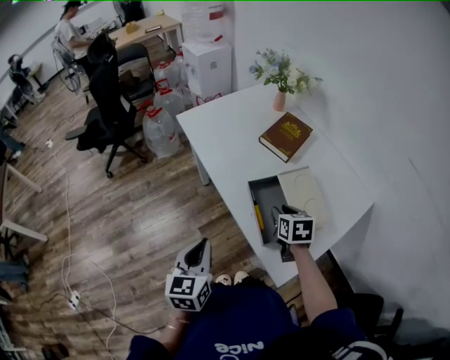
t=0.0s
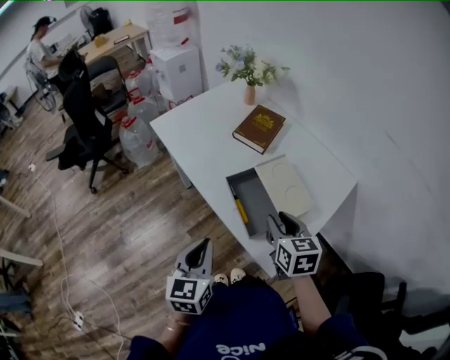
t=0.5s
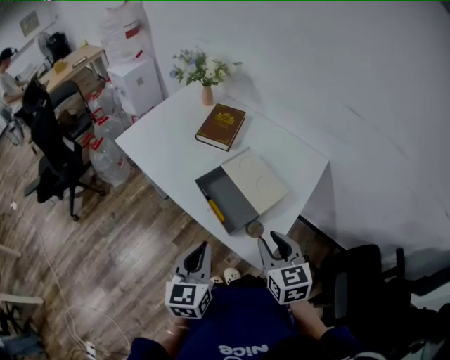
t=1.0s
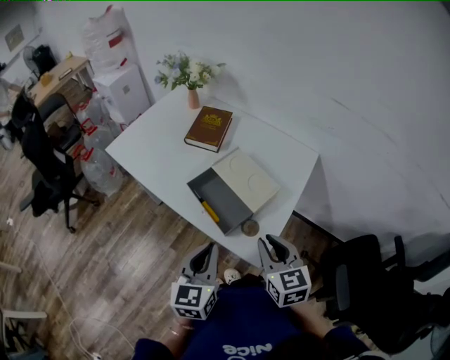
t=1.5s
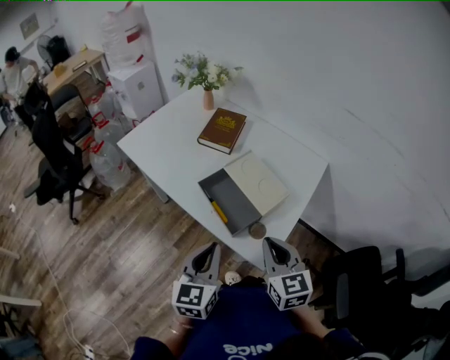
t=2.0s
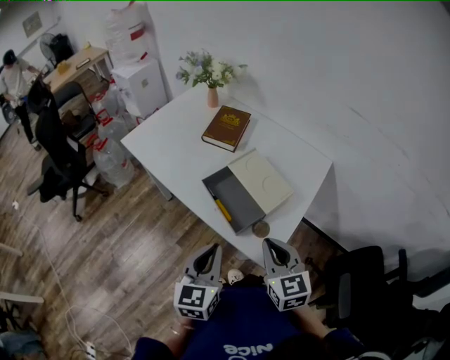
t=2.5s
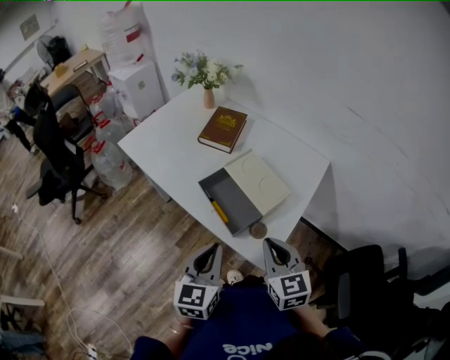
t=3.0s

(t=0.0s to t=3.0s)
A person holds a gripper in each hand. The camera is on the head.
t=0.0s - t=1.5s: The left gripper heads to the right, covering about 15 cm, and swivels some 30 degrees, while the right gripper moves backward, upward and to the right, some 20 cm, and rotates about 30 degrees.
t=1.5s - t=3.0s: The grippers make only small movements.

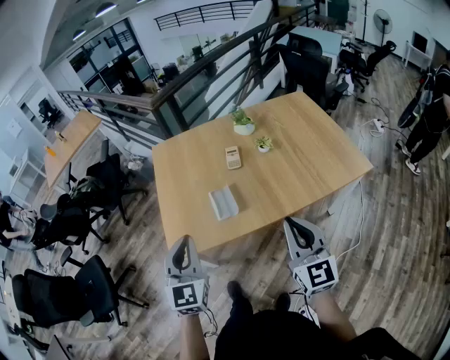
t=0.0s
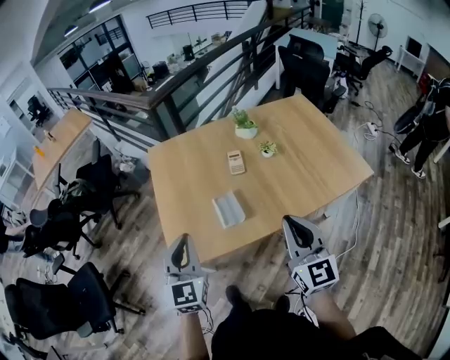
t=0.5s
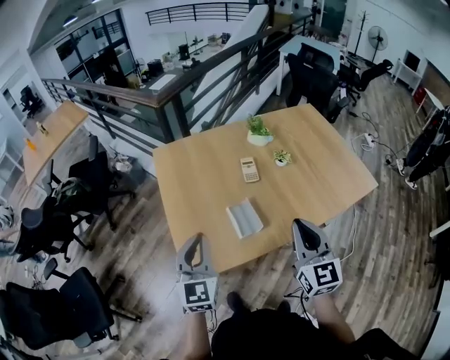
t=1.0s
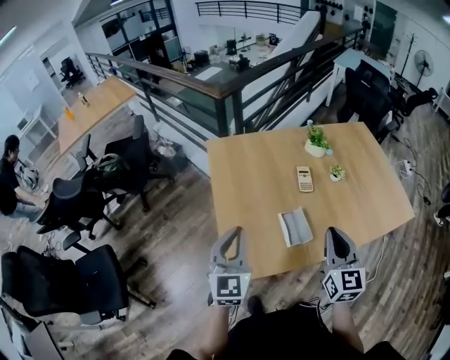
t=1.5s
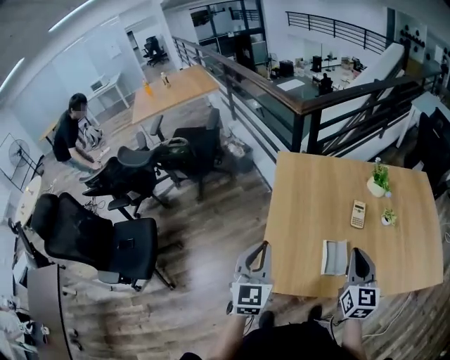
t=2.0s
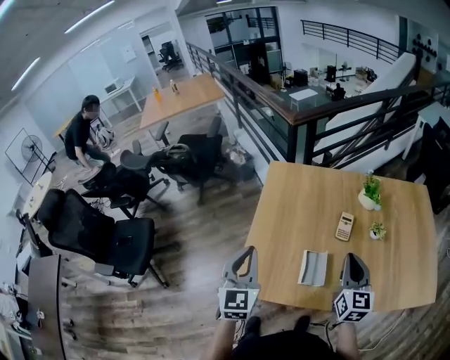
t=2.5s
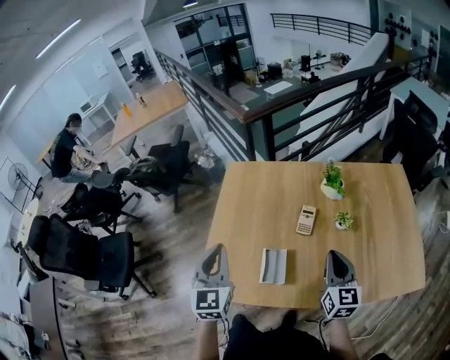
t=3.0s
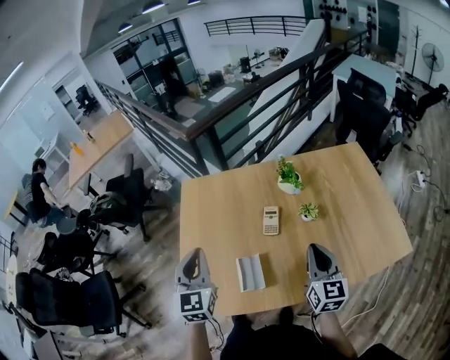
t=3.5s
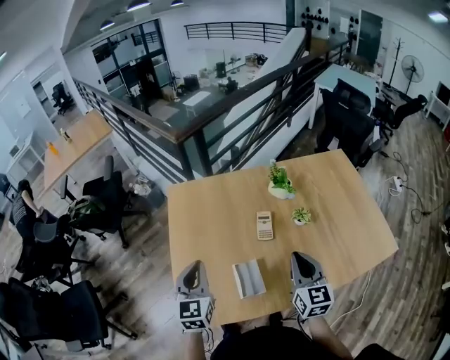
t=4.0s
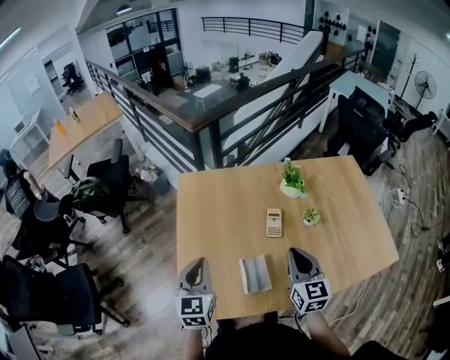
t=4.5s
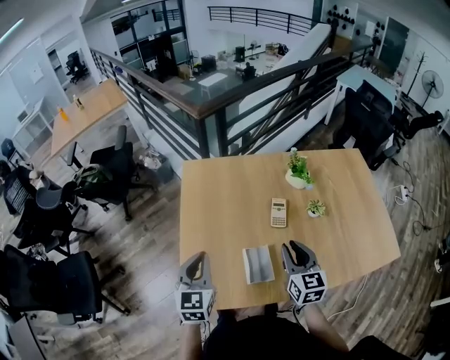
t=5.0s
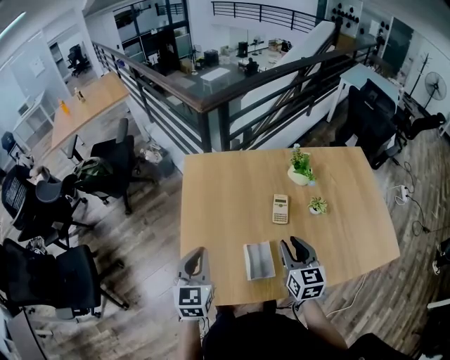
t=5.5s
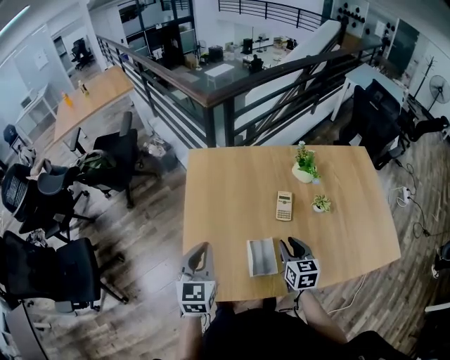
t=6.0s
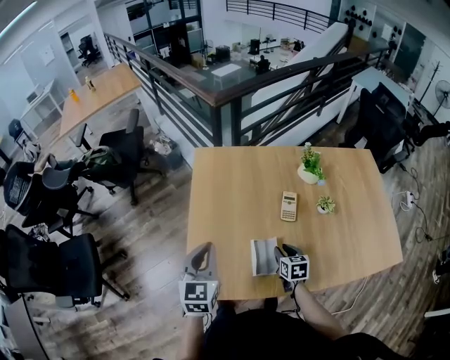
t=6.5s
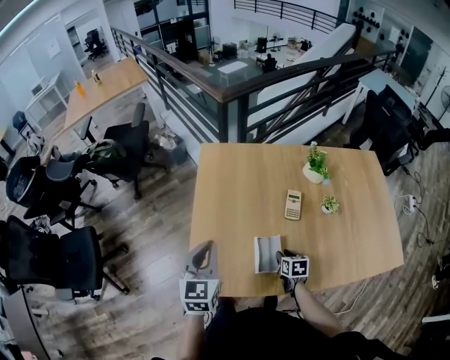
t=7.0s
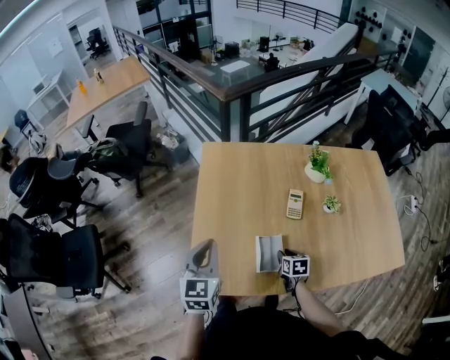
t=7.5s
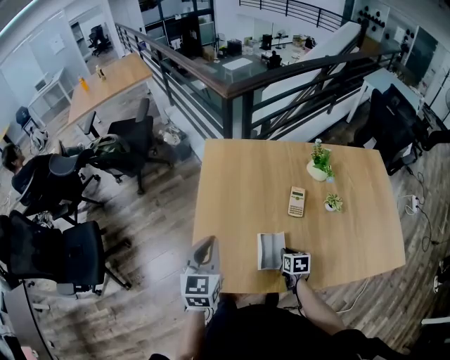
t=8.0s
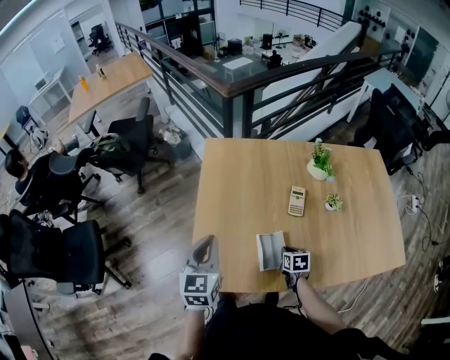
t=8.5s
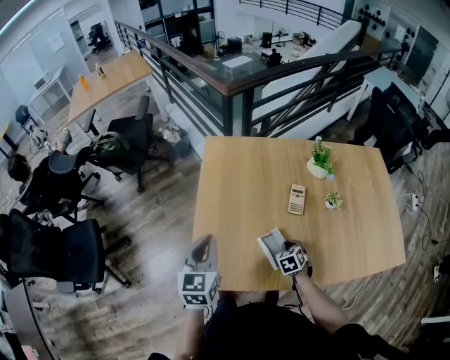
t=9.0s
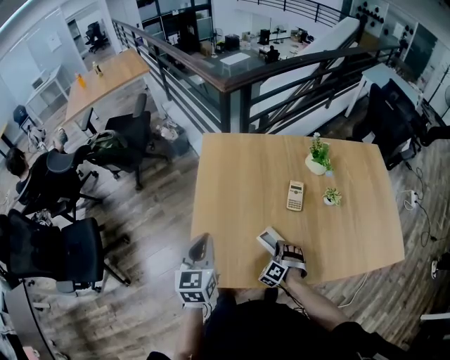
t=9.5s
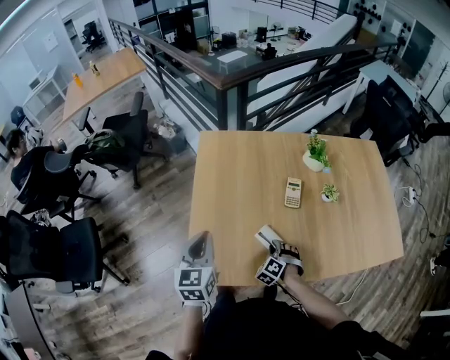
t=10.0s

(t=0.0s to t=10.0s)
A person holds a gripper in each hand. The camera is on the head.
t=0.0s - t=2.0s: The grippers both shift to the left and forward by roughly 30 cm.
t=2.0s - t=4.0s: The left gripper moves to the right and forward, some 20 cm. Meanwhile the right gripper goes roughly 20 cm to the right.
t=4.0s - t=6.0s: The right gripper heads downward and to the left, covering approximately 15 cm, and opens. The left gripper is displaced to the left by about 5 cm.
t=6.0s - t=8.0s: The right gripper travels downward by roughly 15 cm, changes its angle by some 30 degrees, and closes up.
t=8.0s - t=10.0s: The right gripper shifts roughly 5 cm to the left, and rotates around the line of its fingers by approximately 70 degrees, counterclockwise from behind.

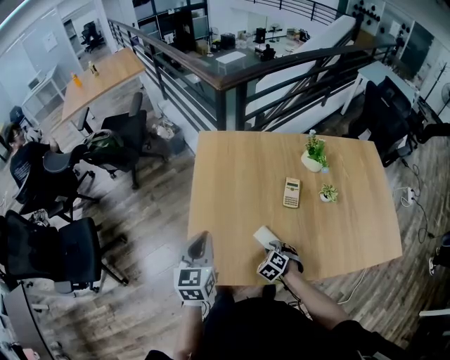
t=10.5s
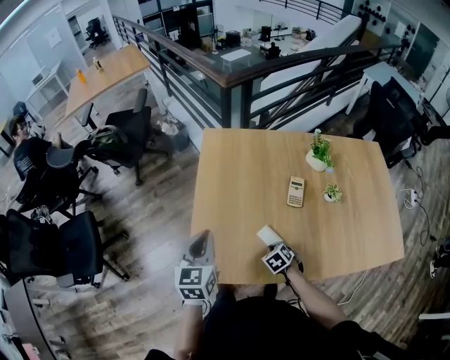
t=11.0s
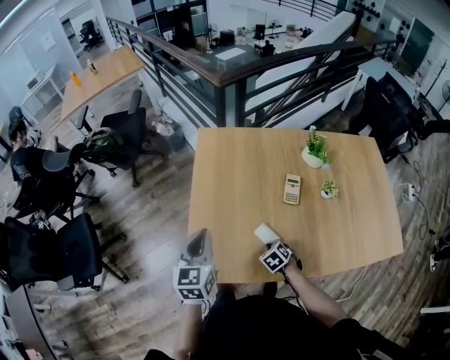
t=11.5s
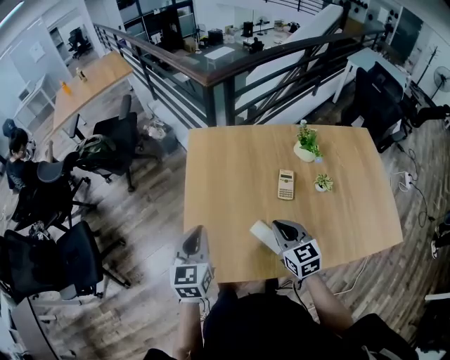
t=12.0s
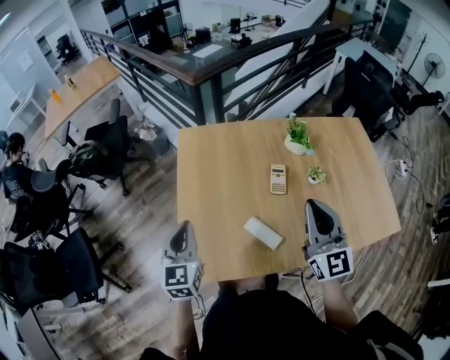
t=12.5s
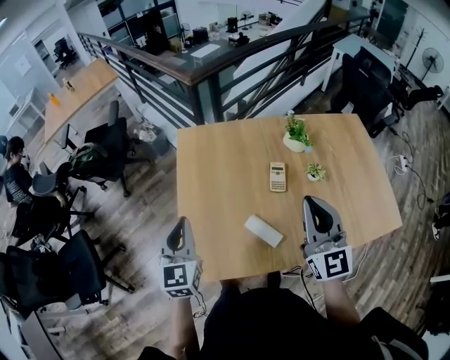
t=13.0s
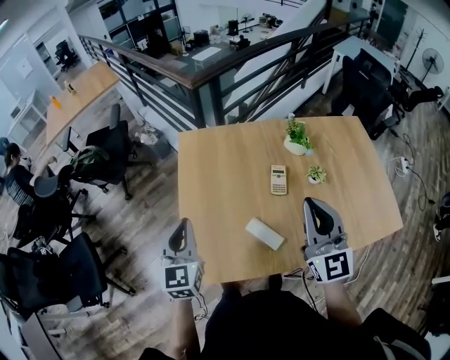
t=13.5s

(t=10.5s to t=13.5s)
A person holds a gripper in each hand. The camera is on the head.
t=10.5s - t=12.0s: The right gripper heads upward, covering roughly 20 cm, tilts its fingers roughly 40 degrees upward, and closes its fingers.
t=12.0s - t=13.5s: The left gripper travels upward by roughly 5 cm. The right gripper travels upward by roughly 20 cm, and points its fingers approximately 30 degrees further upward.

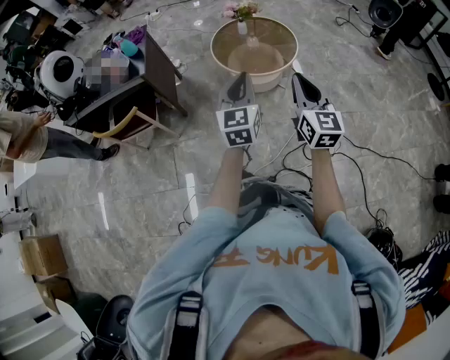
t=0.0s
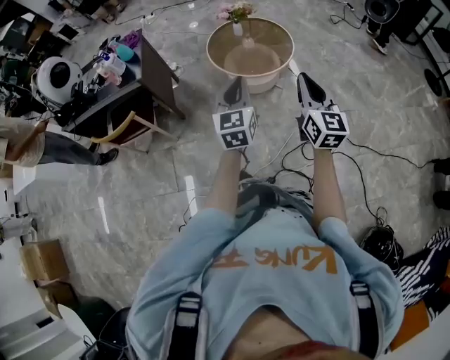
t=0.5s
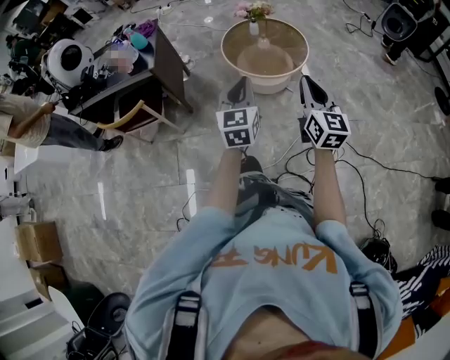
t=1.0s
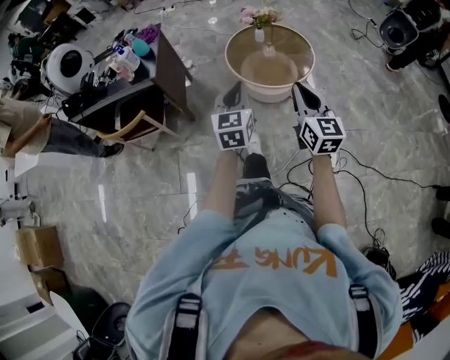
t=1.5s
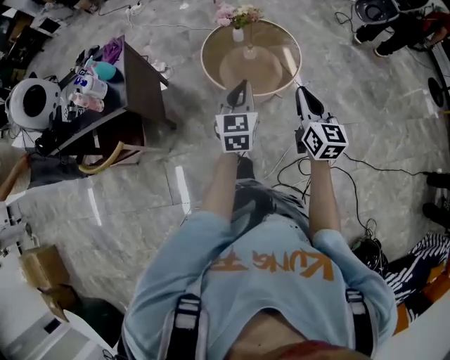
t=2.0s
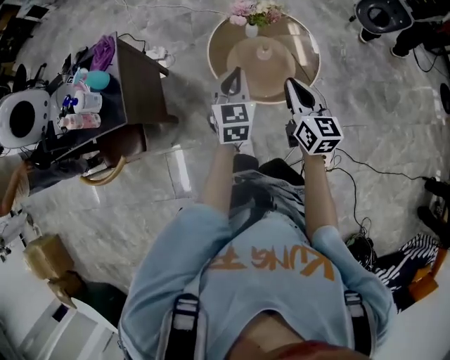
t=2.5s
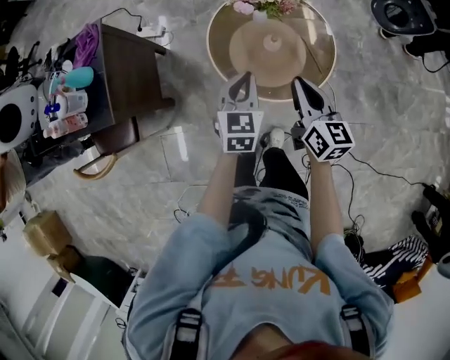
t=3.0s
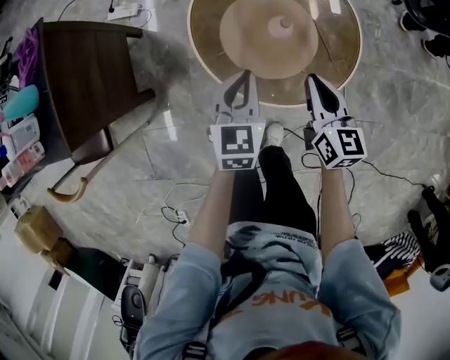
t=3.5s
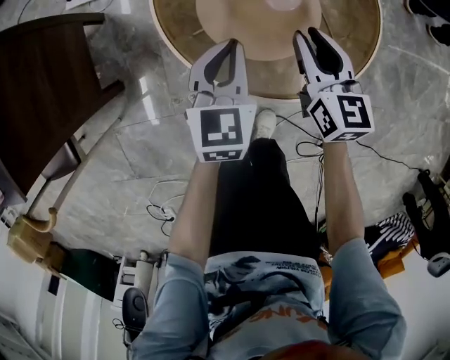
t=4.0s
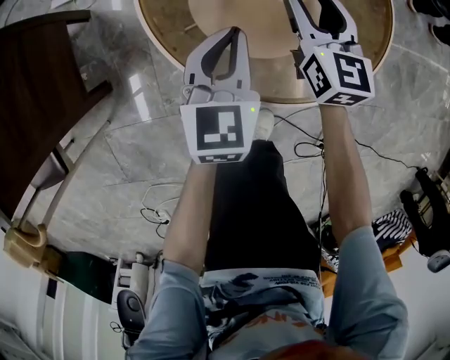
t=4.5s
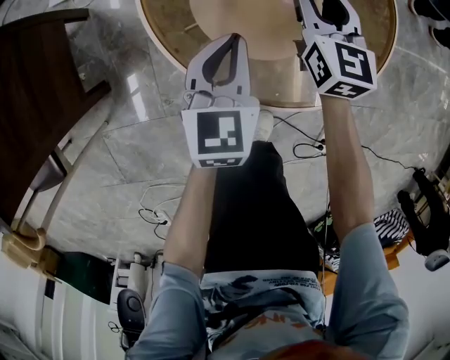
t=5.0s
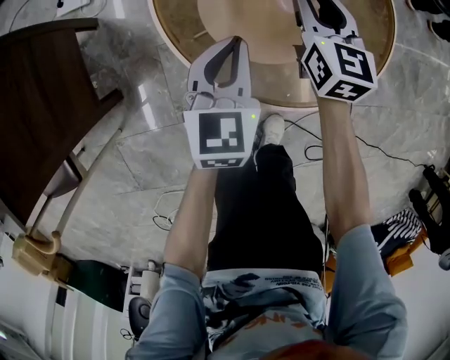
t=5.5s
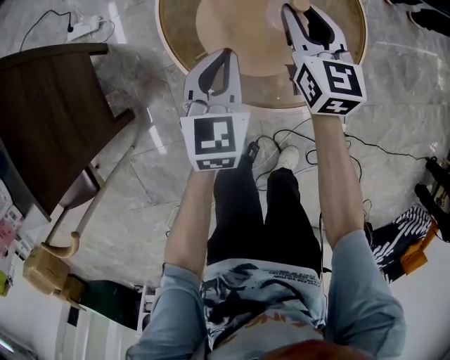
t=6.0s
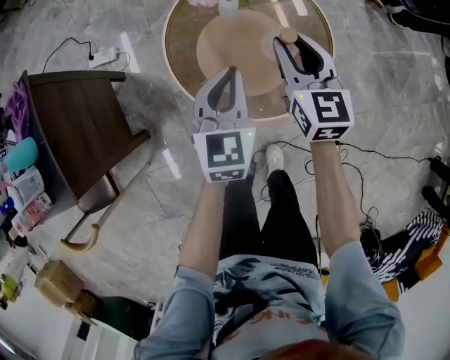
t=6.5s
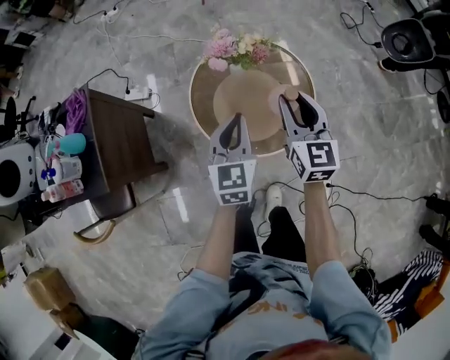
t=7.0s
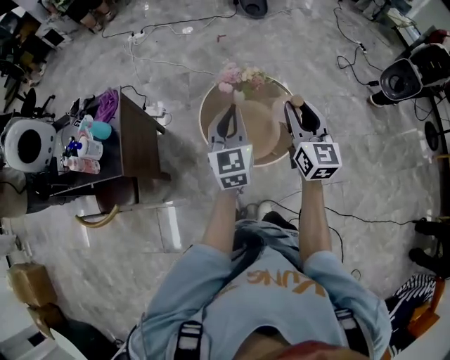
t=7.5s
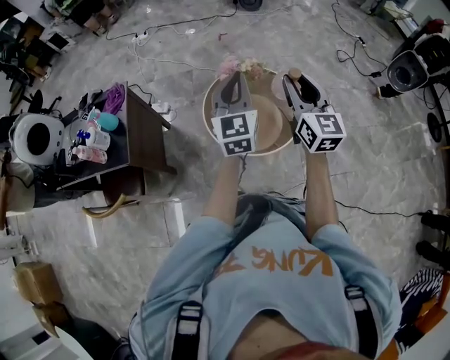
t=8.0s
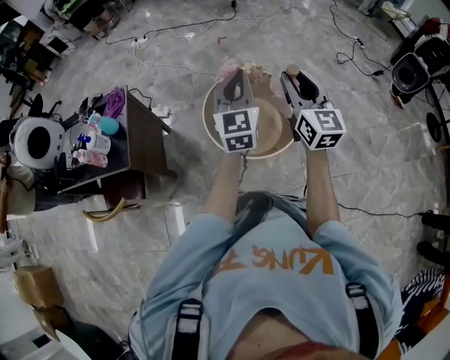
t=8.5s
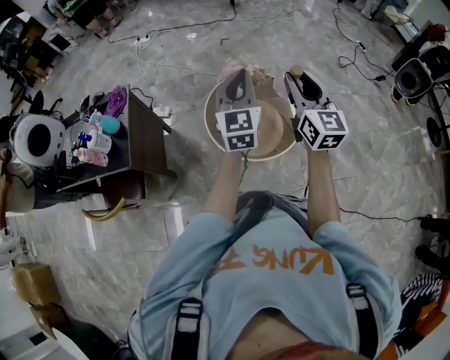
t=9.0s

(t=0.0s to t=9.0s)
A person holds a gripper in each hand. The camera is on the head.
t=0.0s - t=2.0s: The two grippers go about 25 cm forward.
t=2.0s - t=4.5s: The two grippers go approximately 60 cm downward and forward. The right gripper opens up.
t=4.5s - t=7.0s: The grippers both shift upward by about 40 cm.
t=7.0s - t=9.0s: The grippers both shift upward by roughly 25 cm. The left gripper changes its angle by some 20 degrees.

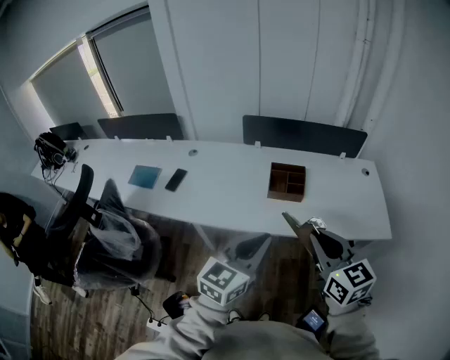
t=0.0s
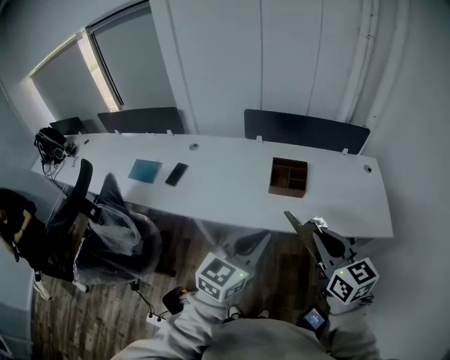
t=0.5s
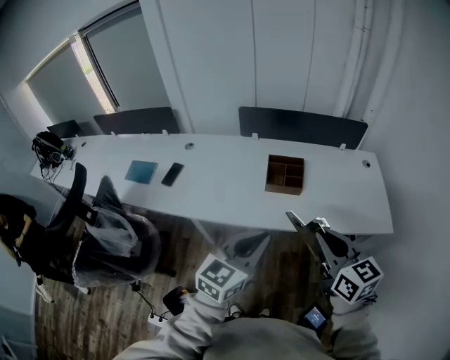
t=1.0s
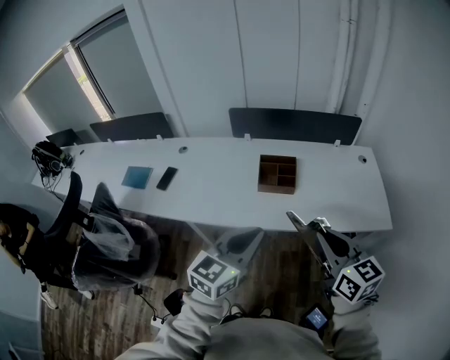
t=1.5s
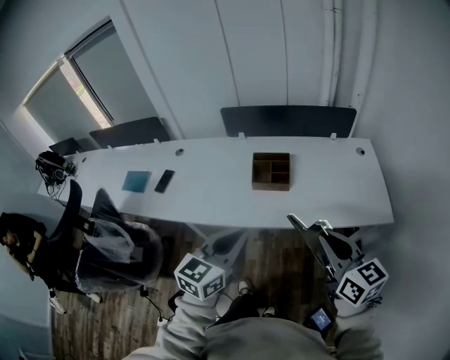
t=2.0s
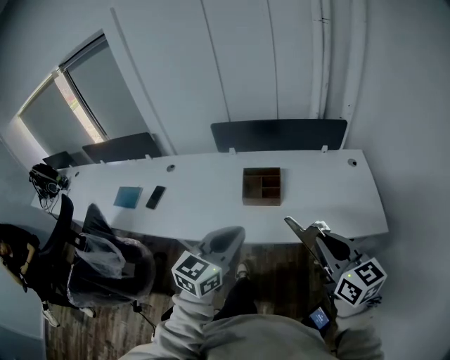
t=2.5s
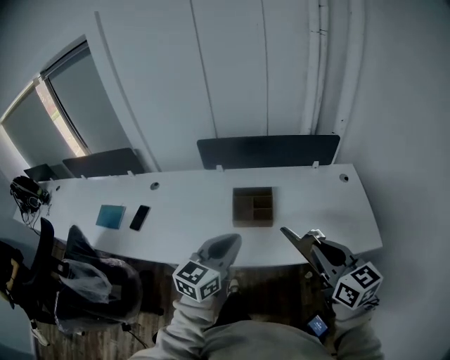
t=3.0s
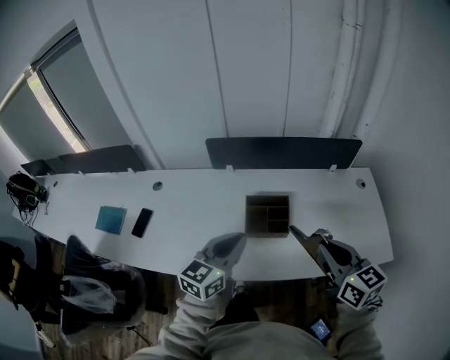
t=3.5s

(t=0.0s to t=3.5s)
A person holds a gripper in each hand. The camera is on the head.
t=0.0s - t=2.0s: The left gripper ends up some 5 cm from where it was, while the right gripper is displaced to the right by roughly 10 cm.
t=2.0s - t=3.5s: Both grippers travel together forward, approximately 25 cm.
